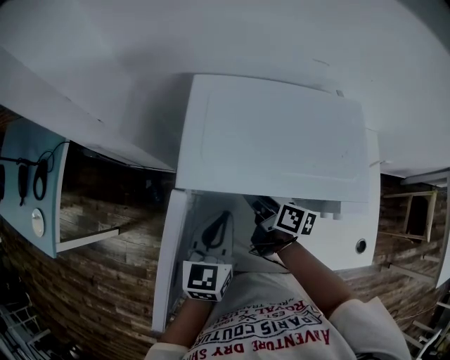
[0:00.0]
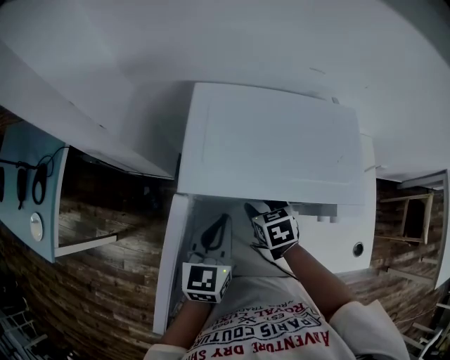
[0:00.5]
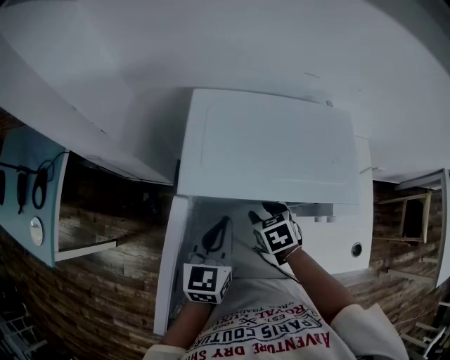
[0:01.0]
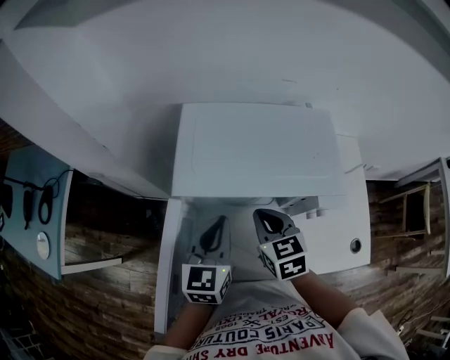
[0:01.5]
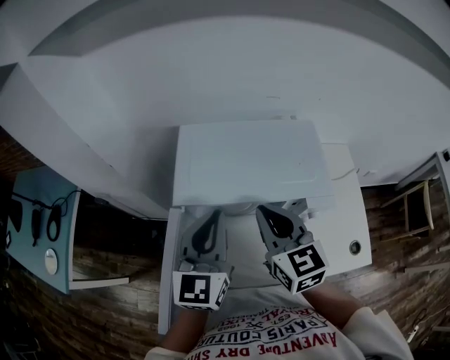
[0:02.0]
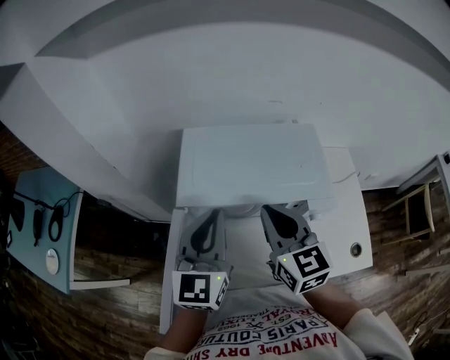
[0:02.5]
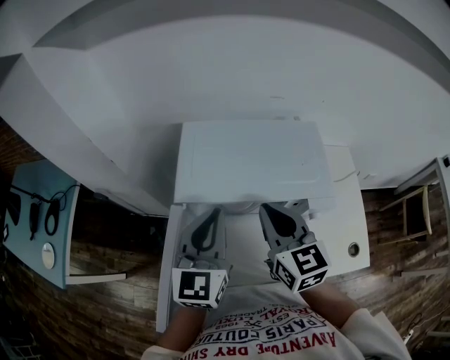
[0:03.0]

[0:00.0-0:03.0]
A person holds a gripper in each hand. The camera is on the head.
0:01.5 to 0:03.0: The left gripper goes some 10 cm upward.

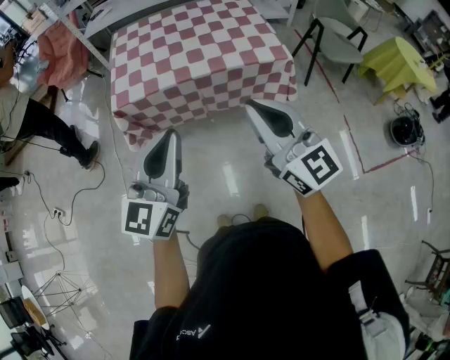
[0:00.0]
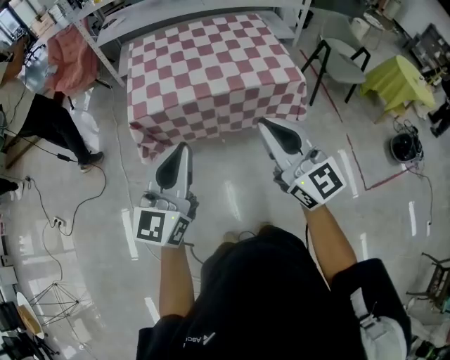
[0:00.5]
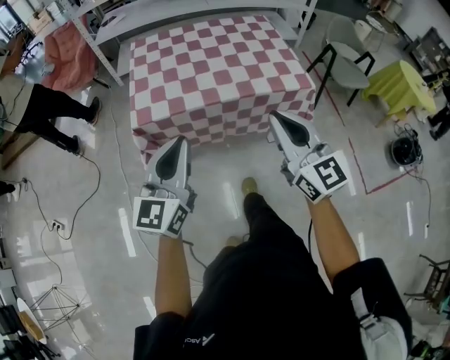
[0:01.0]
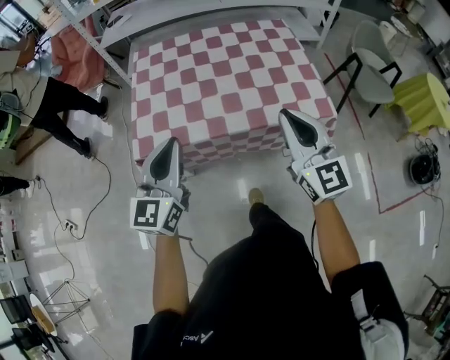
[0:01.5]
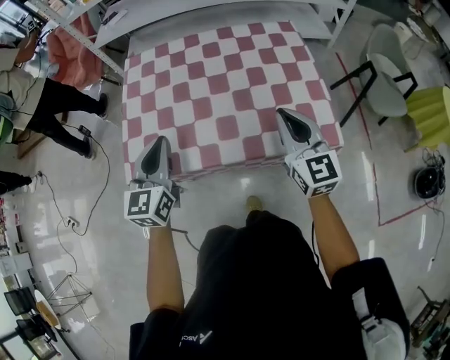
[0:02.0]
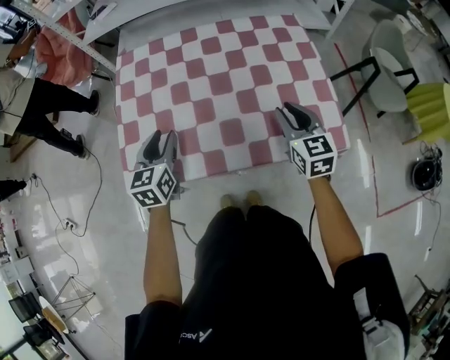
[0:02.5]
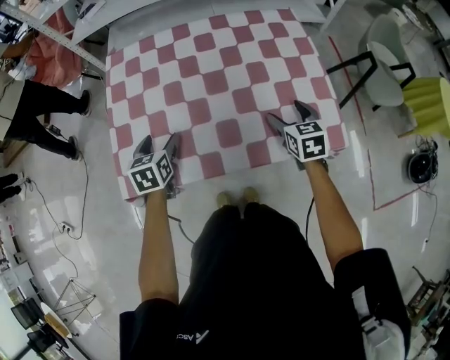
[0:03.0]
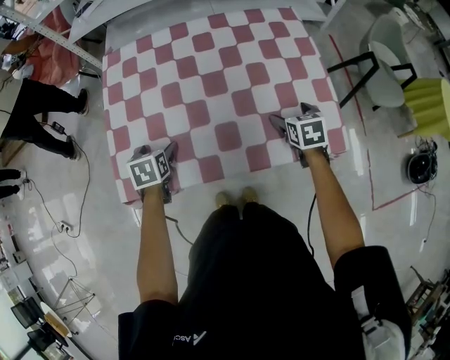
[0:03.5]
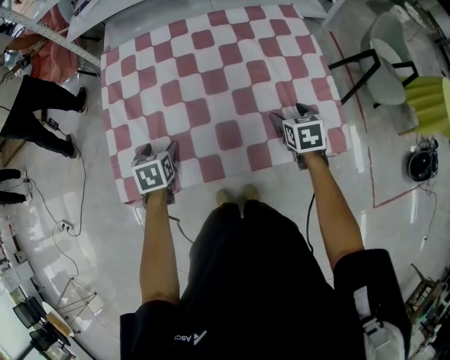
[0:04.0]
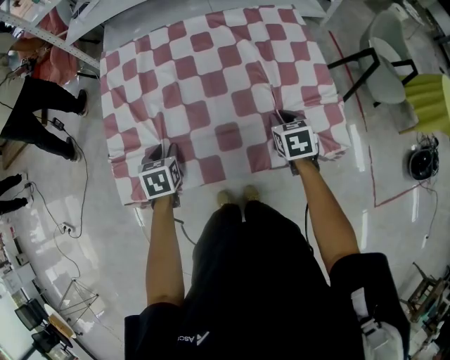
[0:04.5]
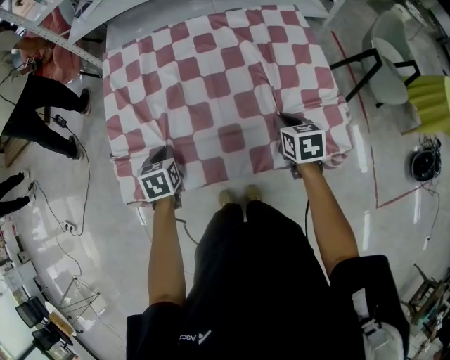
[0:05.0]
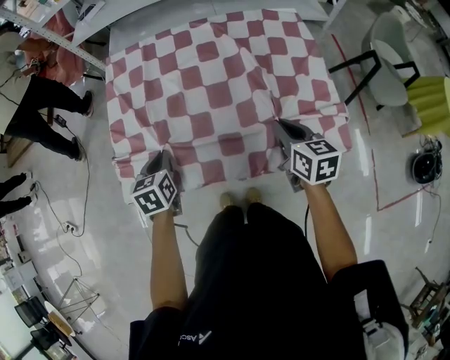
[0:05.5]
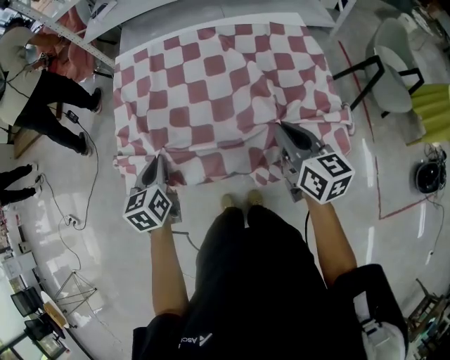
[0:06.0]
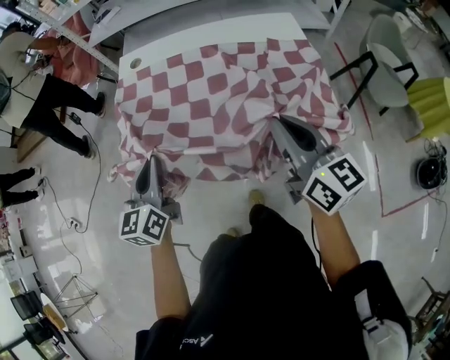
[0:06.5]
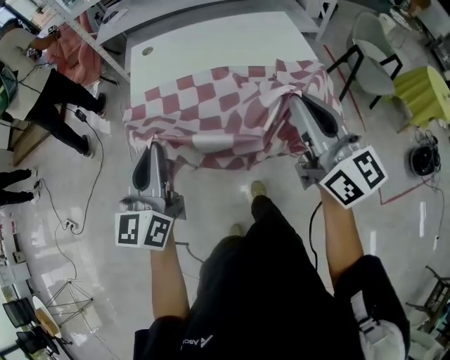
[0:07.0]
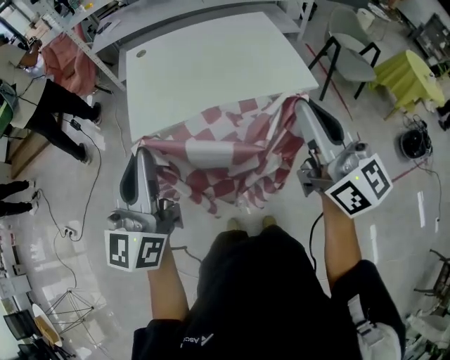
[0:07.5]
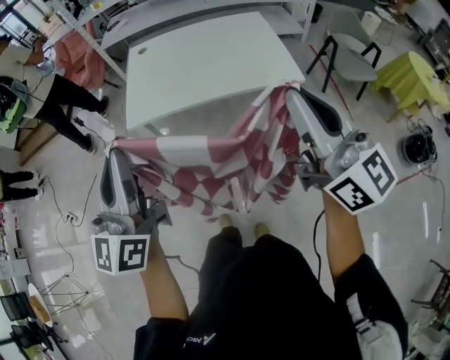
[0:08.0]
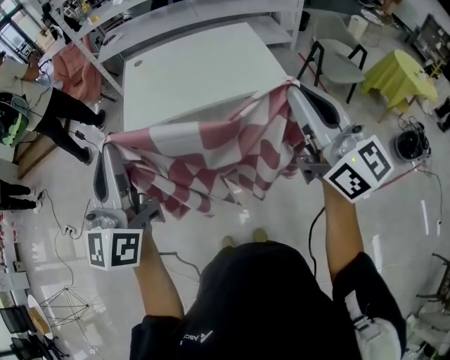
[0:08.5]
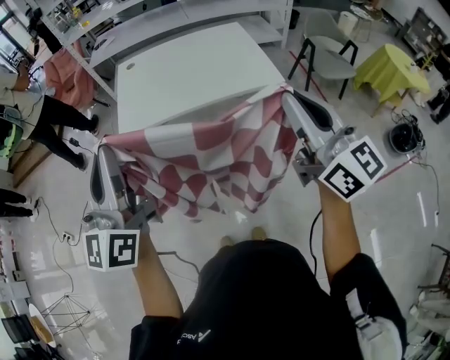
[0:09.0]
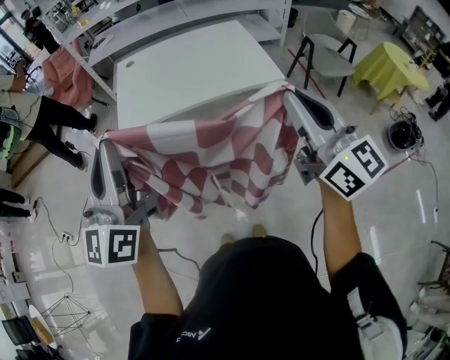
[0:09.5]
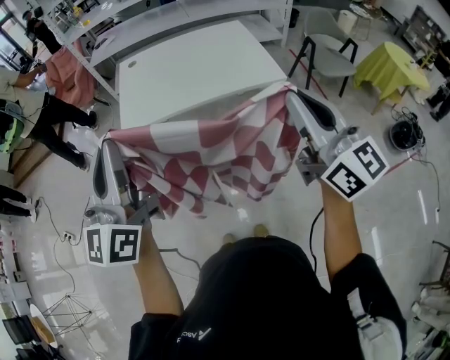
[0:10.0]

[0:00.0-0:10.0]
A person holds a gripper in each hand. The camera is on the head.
0:00.0 to 0:02.0: The pair of grippers is taken forward, some 40 cm. The left gripper swivels approximately 20 degrees.
0:02.0 to 0:04.0: Both grippers travel together downward and forward, roughly 25 cm. The right gripper tips its fingers downward by roughly 50 degrees, and opens, while the left gripper tilts its fingers about 50 degrees downward, and opens its fingers.
0:04.0 to 0:06.0: Both grippers move upward and backward, about 15 cm. The right gripper angles its fingers upward, by some 30 degrees, and closes its fingers. The left gripper changes its angle by roughly 30 degrees, and closes up.
0:06.0 to 0:08.0: The pair of grippers is taken backward, about 40 cm. Both grippers move upward, some 30 cm. The right gripper tips its fingers upward by approximately 30 degrees. The left gripper tilts its fingers approximately 50 degrees upward.
0:08.0 to 0:10.0: The left gripper shifts by approximately 5 cm.

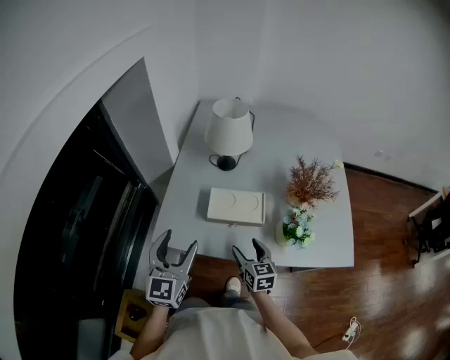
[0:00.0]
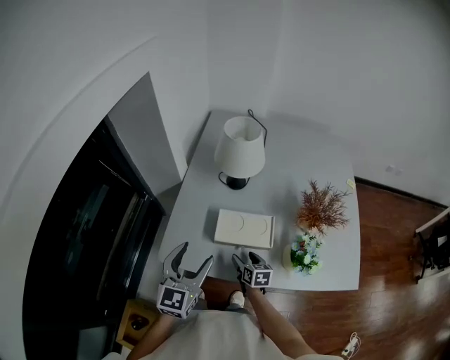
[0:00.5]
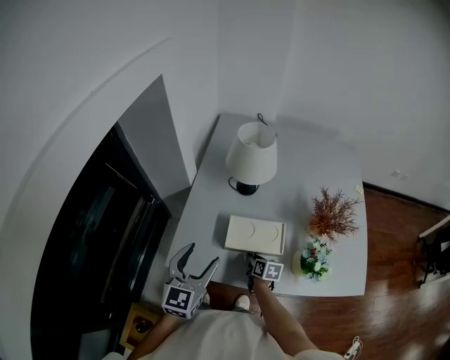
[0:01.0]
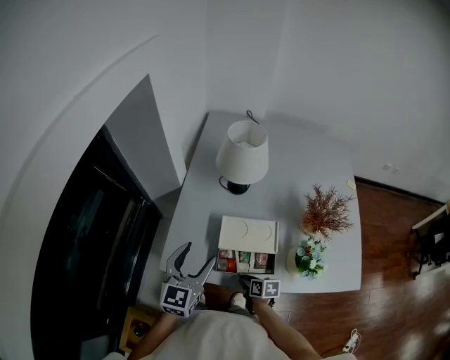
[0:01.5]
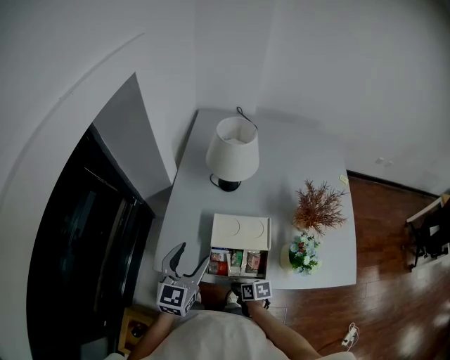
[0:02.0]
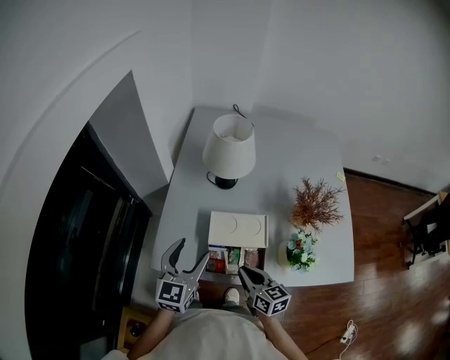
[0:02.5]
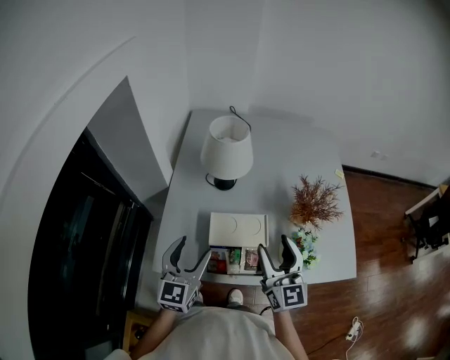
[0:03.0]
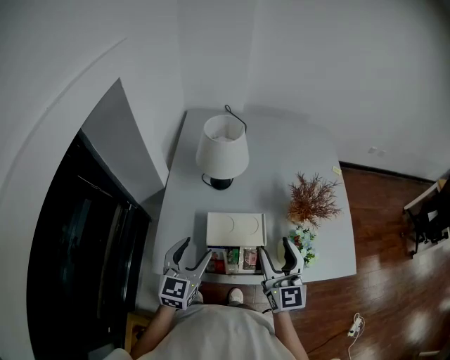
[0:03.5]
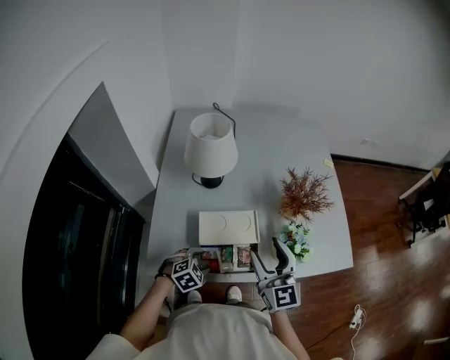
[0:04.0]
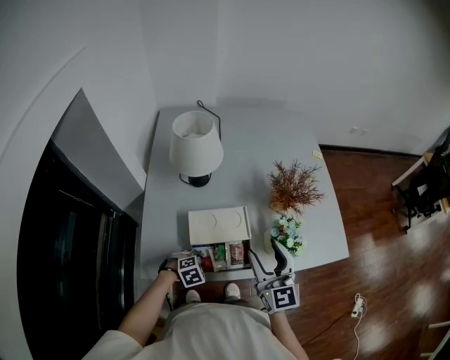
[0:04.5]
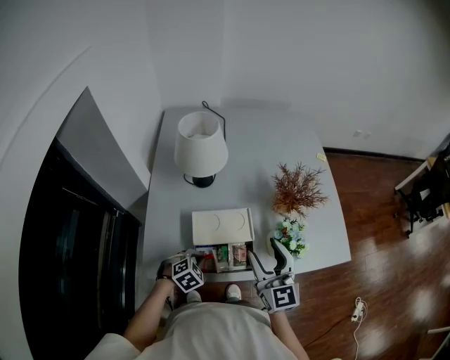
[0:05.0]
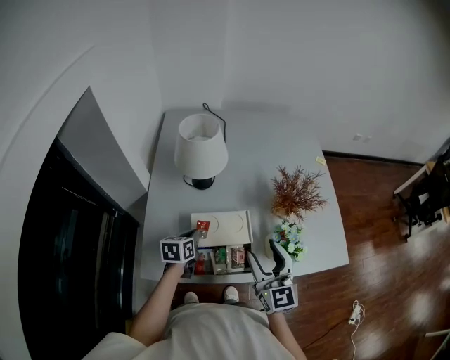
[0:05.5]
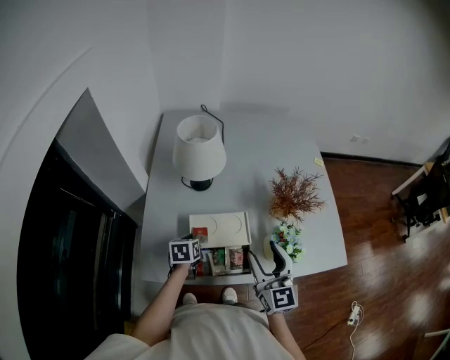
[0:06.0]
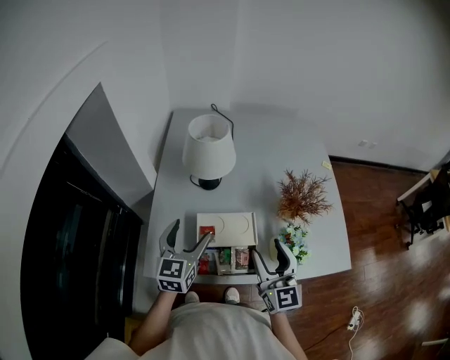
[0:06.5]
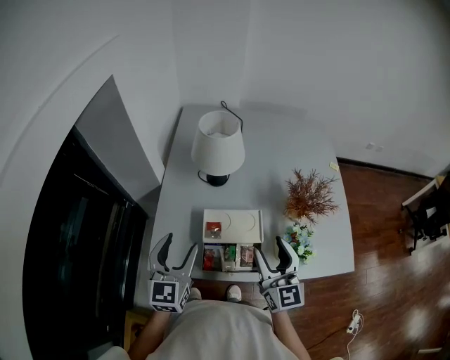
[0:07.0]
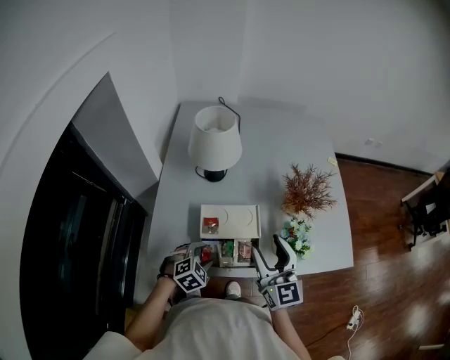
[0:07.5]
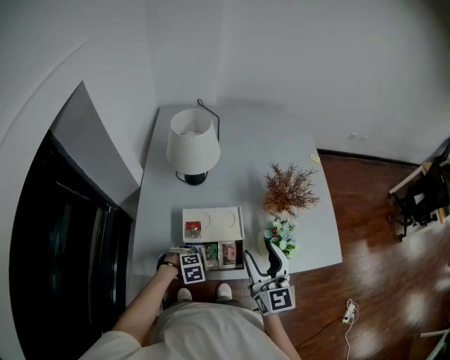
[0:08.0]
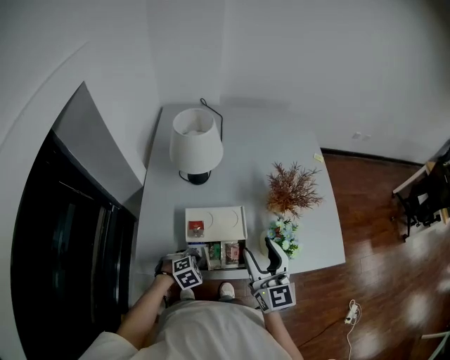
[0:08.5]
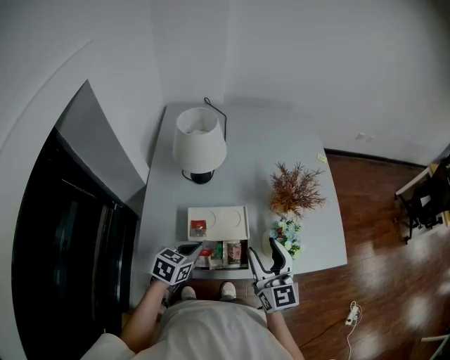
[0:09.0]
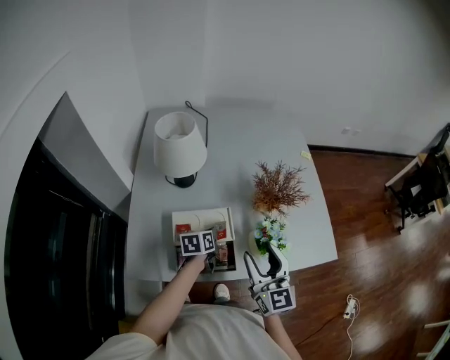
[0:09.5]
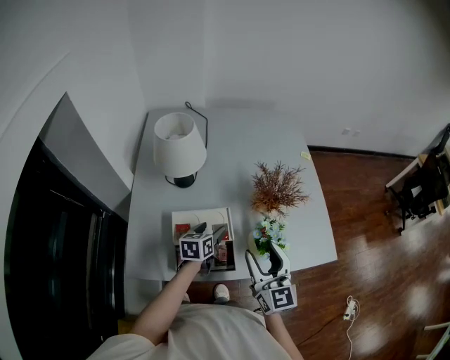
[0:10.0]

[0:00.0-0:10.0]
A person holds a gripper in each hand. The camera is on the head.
0:00.0 to 0:02.0: The right gripper moves downward, approximately 15 cm, changes its angle by some 50 degrees, and closes up; the left gripper heads forward, covering about 10 cm.
0:02.0 to 0:04.0: The left gripper travels downward by approximately 20 cm, and tilts its fingers roughly 50 degrees downward; the right gripper goes approximately 35 cm upward, points its fingers some 50 degrees further upward, and opens up.
0:04.0 to 0:06.0: The left gripper is displaced forward by some 10 cm, twists approximately 60 degrees counterclockwise, seen from behind, and closes.
0:06.0 to 0:08.0: The left gripper goes upward and returns, approximately 25 cm each way, twists approximately 80 degrees clockwise, seen from behind, and opens, then closes once more.
0:08.0 to 0:10.0: The left gripper changes place by about 20 cm, rotates around the line of its fingers by roughly 70 degrees, counterclockwise from behind, and opens.

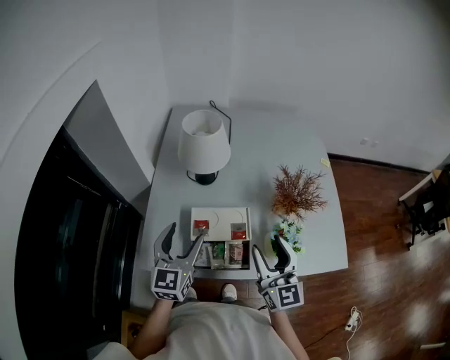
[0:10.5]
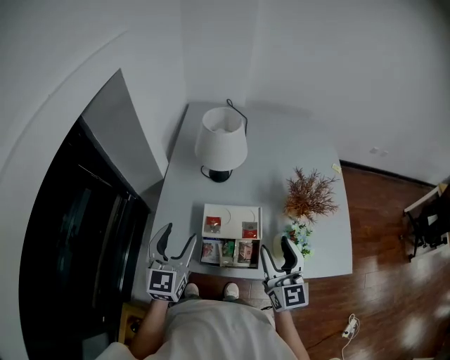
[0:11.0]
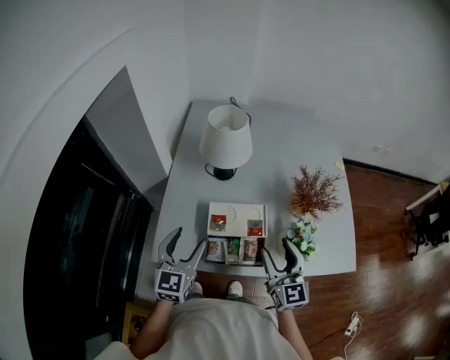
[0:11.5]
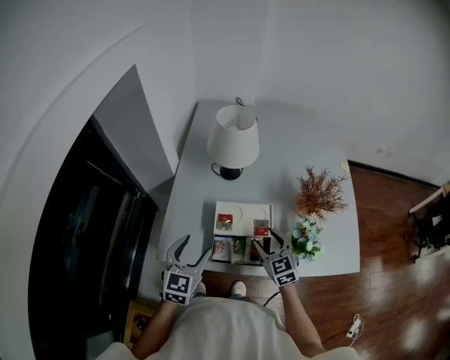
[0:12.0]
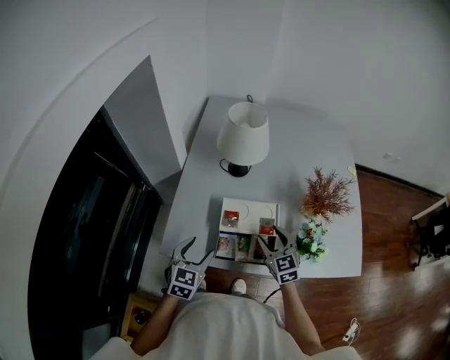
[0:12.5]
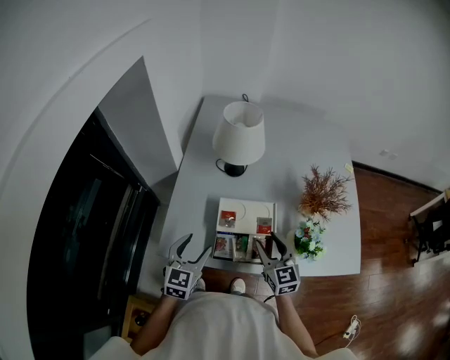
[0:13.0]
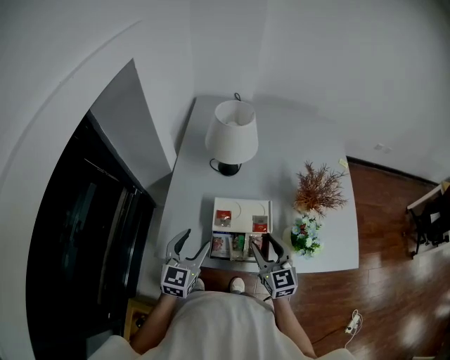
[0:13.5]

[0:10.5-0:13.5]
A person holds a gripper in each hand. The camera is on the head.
0:10.5 to 0:12.0: The left gripper heads downward and backward, covering roughly 10 cm. The right gripper shifts about 15 cm downward, and turns by approximately 30 degrees.
0:12.0 to 0:13.5: The right gripper shifts by approximately 5 cm.
